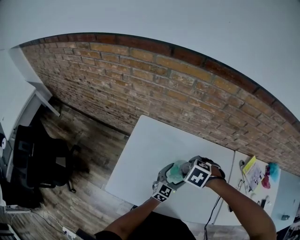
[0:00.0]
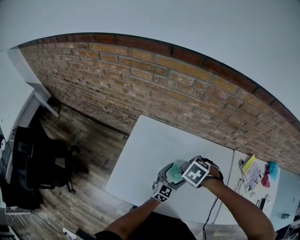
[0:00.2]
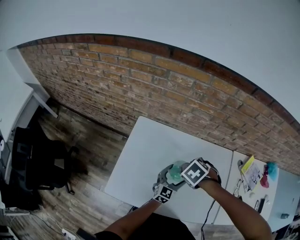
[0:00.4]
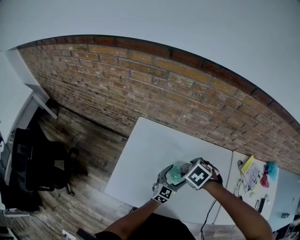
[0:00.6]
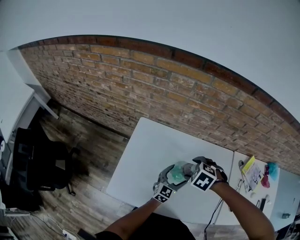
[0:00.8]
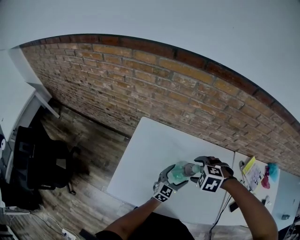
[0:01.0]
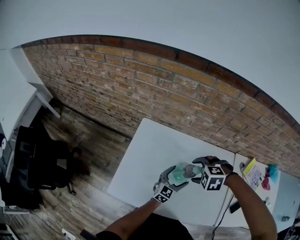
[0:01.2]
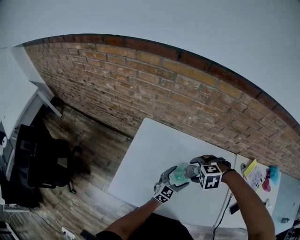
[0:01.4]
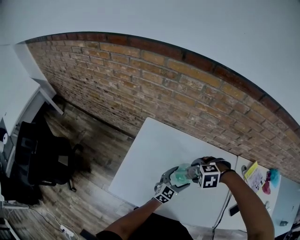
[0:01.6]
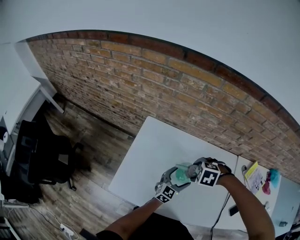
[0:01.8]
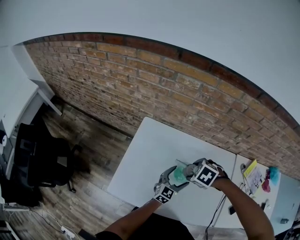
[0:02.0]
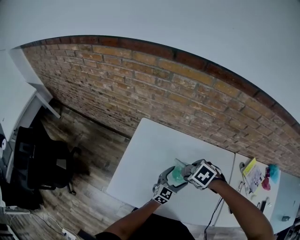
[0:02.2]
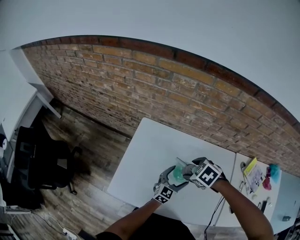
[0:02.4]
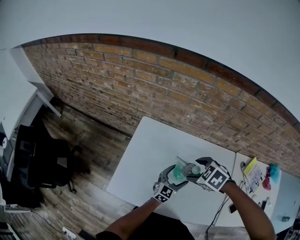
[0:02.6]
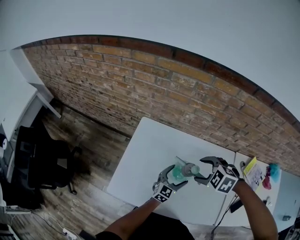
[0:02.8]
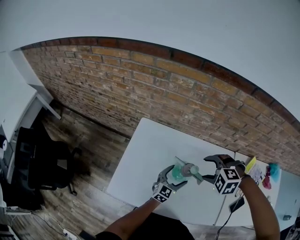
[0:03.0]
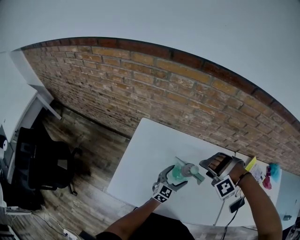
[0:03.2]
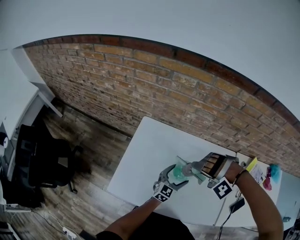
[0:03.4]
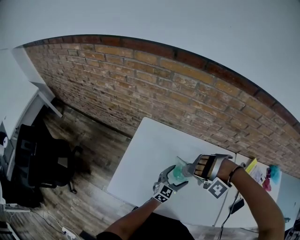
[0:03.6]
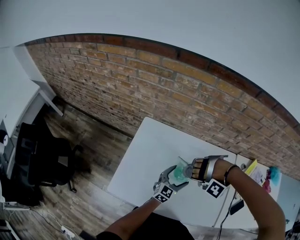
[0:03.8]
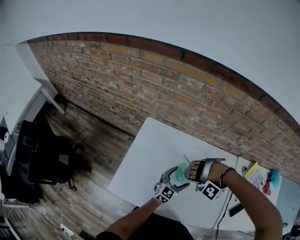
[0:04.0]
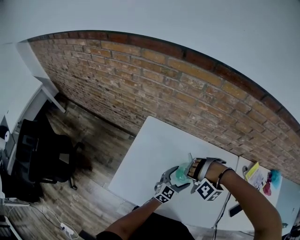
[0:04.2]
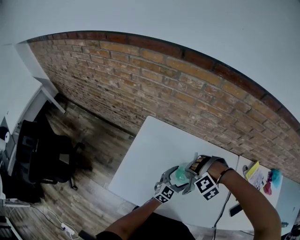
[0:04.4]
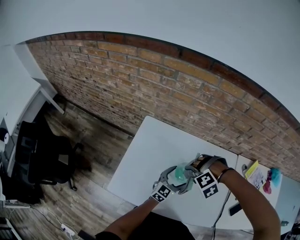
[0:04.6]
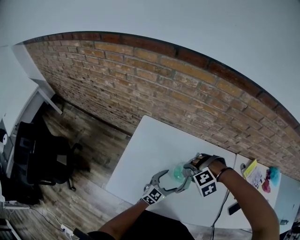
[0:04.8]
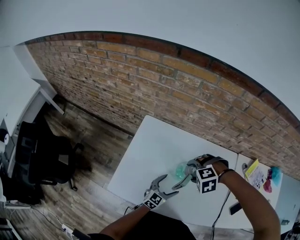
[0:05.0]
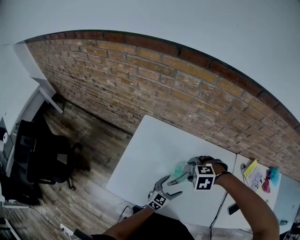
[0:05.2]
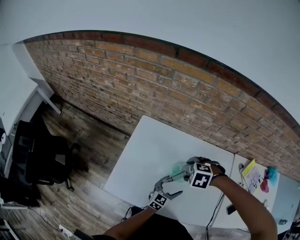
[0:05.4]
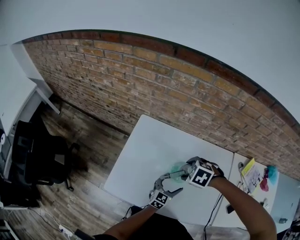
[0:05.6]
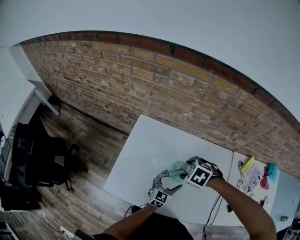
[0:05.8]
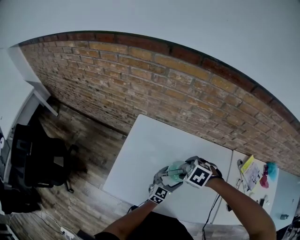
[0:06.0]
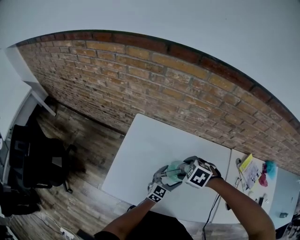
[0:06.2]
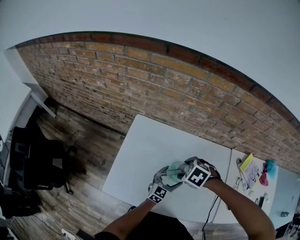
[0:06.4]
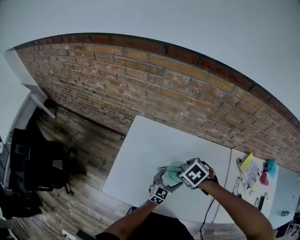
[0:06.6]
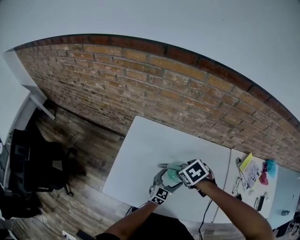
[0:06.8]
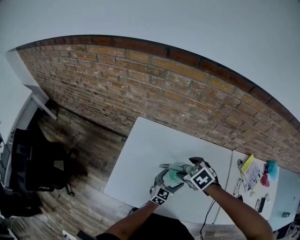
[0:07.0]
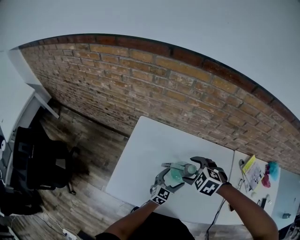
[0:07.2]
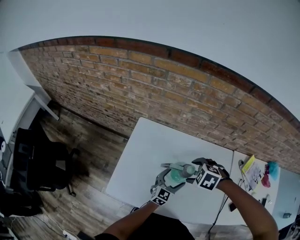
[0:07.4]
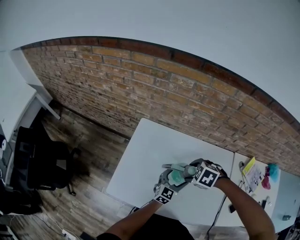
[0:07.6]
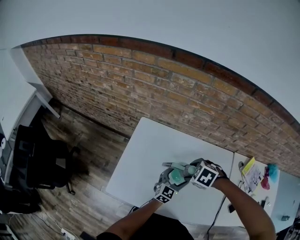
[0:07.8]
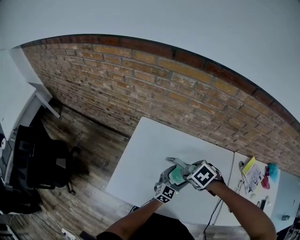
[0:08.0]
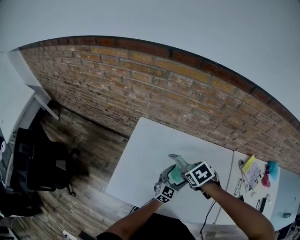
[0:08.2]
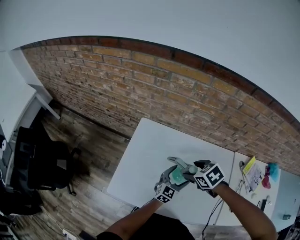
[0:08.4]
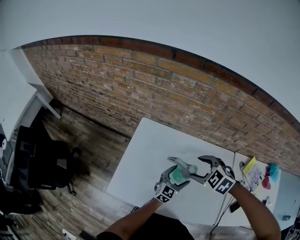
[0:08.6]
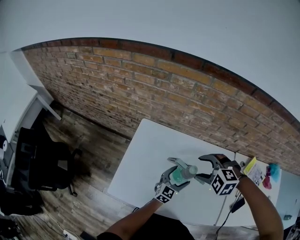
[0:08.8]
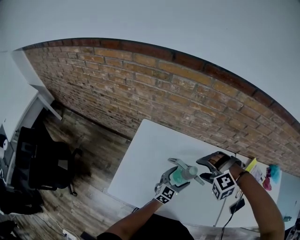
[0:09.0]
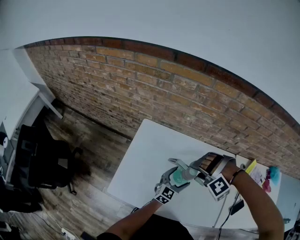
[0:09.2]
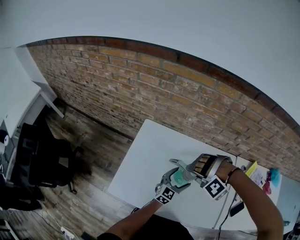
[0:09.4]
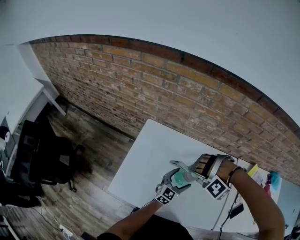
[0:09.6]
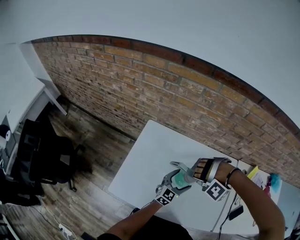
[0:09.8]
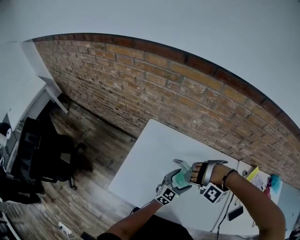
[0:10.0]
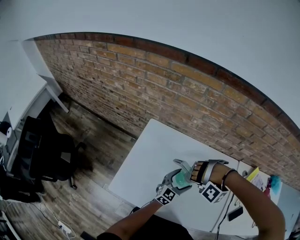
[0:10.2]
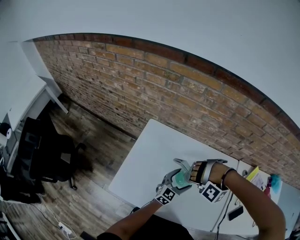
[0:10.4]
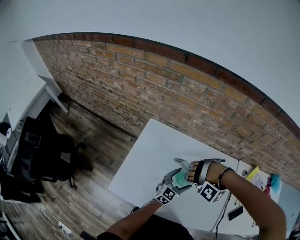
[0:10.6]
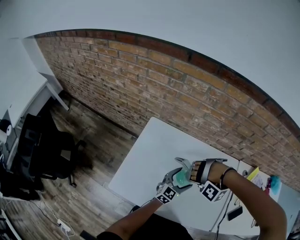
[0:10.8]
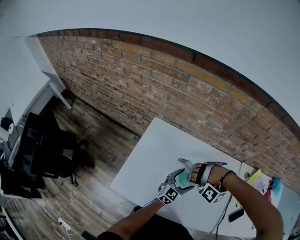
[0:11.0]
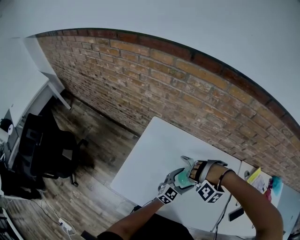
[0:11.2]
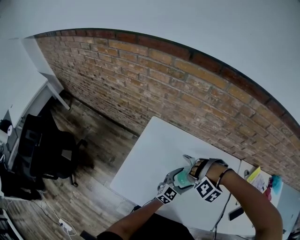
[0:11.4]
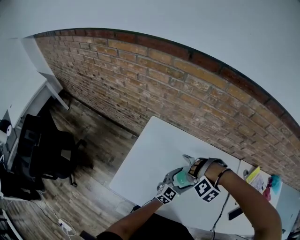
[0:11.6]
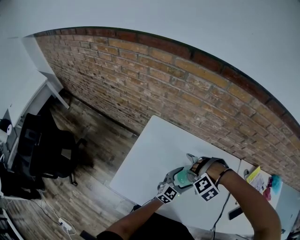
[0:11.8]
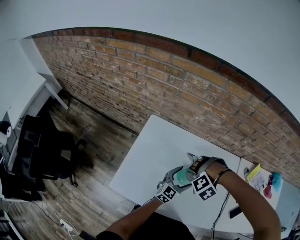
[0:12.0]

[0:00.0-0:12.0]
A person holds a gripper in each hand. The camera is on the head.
0:00.0 to 0:01.6: The right gripper changes its angle by roughly 30 degrees.
0:01.6 to 0:03.0: The right gripper travels upward by approximately 5 cm.
0:03.0 to 0:04.4: The right gripper moves downward, roughly 5 cm, and twists roughly 50 degrees counterclockwise, seen from behind.
0:04.4 to 0:06.0: The right gripper twists about 70 degrees clockwise, seen from behind.
0:07.6 to 0:09.0: The right gripper is displaced upward by roughly 5 cm, and rotates around the line of its fingers by roughly 50 degrees, counterclockwise from behind.
0:09.0 to 0:10.4: The right gripper goes roughly 5 cm downward, and rotates around the line of its fingers by approximately 50 degrees, counterclockwise from behind.
0:10.4 to 0:12.0: The right gripper turns by about 40 degrees.

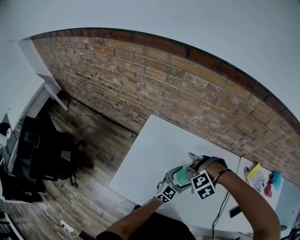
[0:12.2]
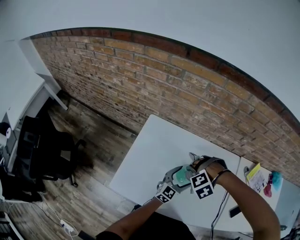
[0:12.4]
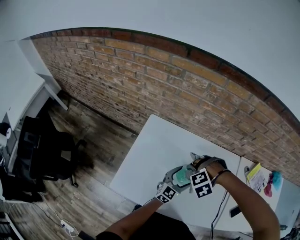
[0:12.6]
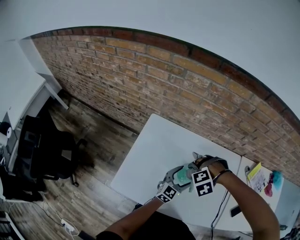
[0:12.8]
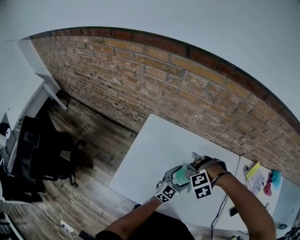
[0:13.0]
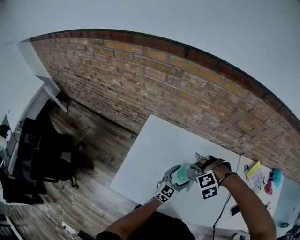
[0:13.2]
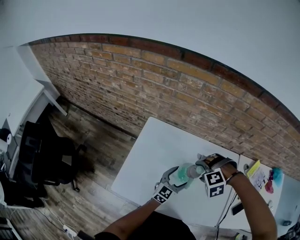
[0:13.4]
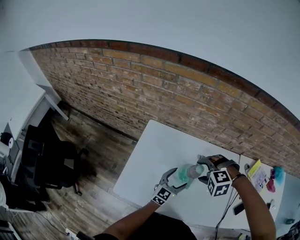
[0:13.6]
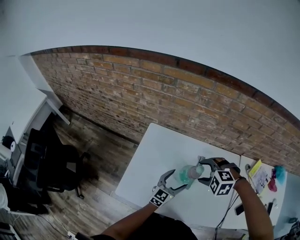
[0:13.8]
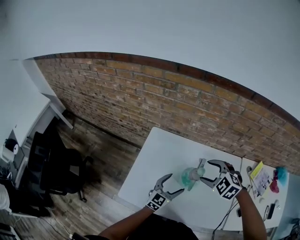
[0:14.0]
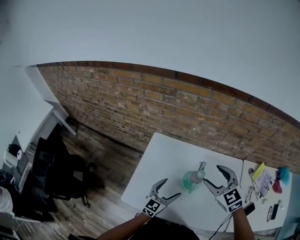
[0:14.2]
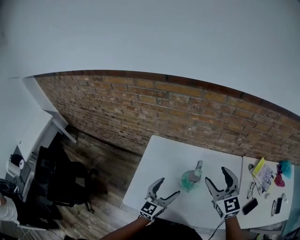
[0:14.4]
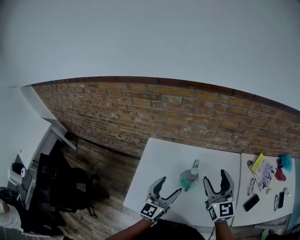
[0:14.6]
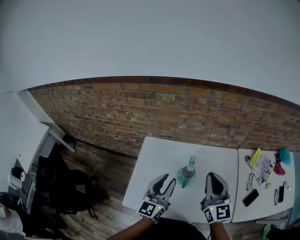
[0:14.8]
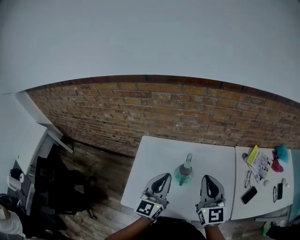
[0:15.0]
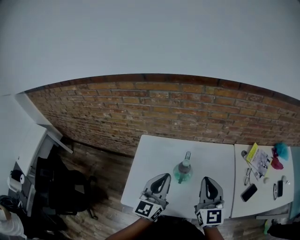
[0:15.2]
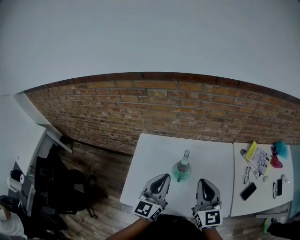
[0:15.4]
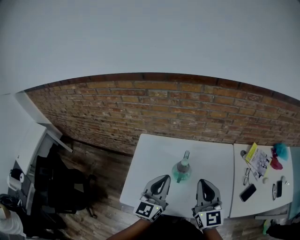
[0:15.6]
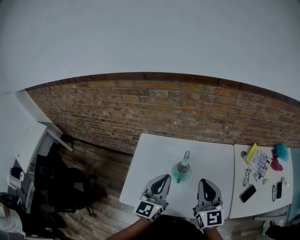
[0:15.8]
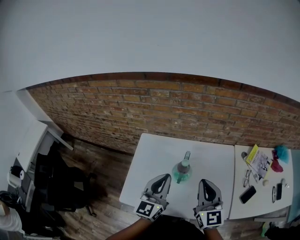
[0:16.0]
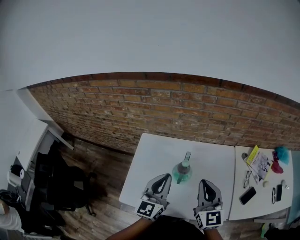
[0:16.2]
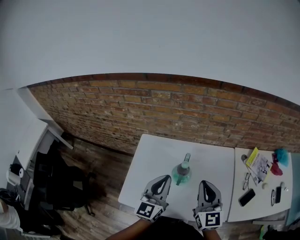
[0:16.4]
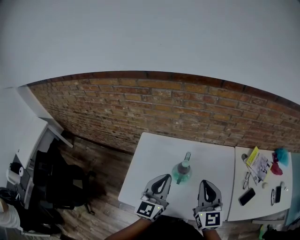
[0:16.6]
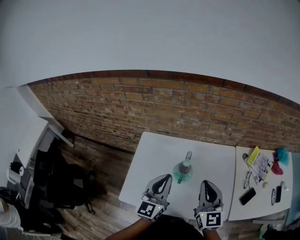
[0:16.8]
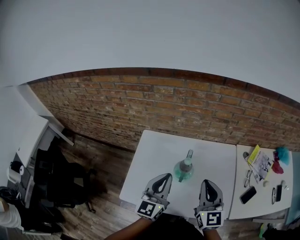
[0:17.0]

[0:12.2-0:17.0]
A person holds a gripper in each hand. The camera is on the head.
0:12.2 to 0:13.8: The left gripper shifts by about 5 cm, while the right gripper heads upward, covering some 10 cm, and swivels some 40 degrees.
0:13.8 to 0:15.4: The right gripper shifts some 20 cm upward, backward and to the right, angles its fingers upward, by roughly 60 degrees, and closes; the left gripper travels upward by about 20 cm, and closes its fingers.
0:15.4 to 0:17.0: The grippers make only small movements.

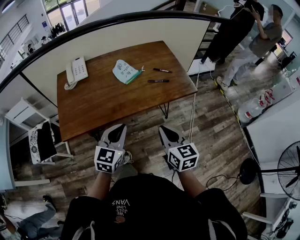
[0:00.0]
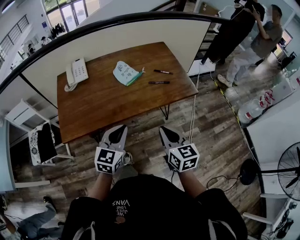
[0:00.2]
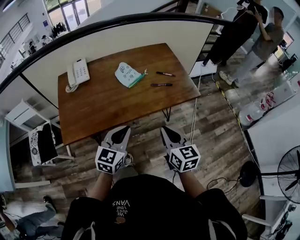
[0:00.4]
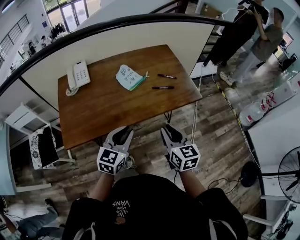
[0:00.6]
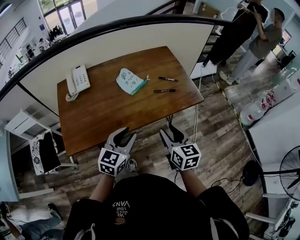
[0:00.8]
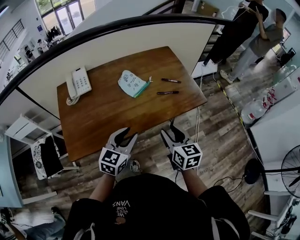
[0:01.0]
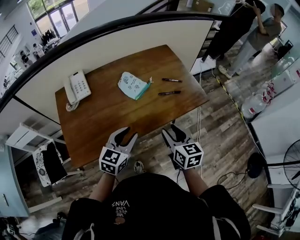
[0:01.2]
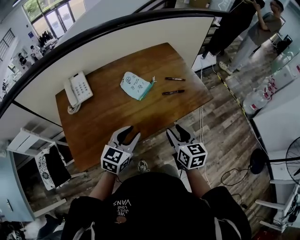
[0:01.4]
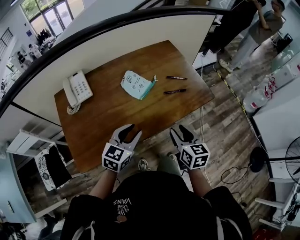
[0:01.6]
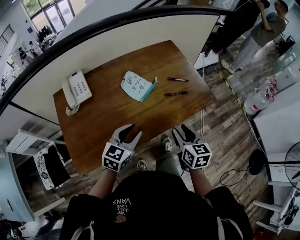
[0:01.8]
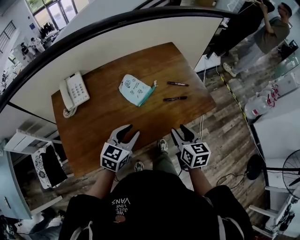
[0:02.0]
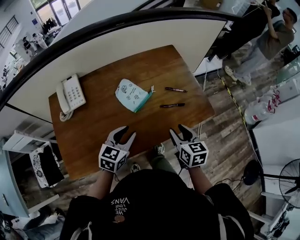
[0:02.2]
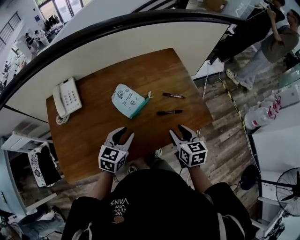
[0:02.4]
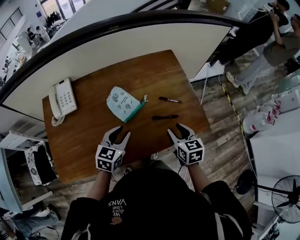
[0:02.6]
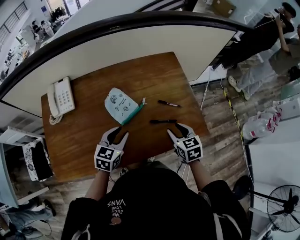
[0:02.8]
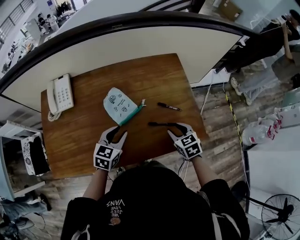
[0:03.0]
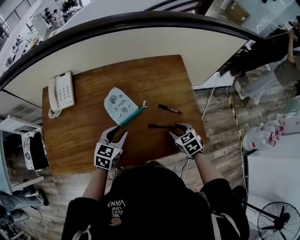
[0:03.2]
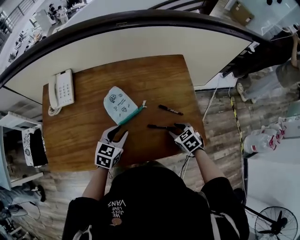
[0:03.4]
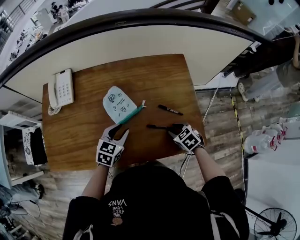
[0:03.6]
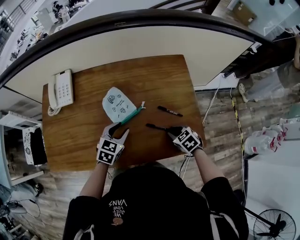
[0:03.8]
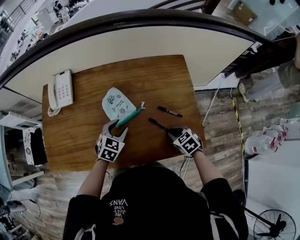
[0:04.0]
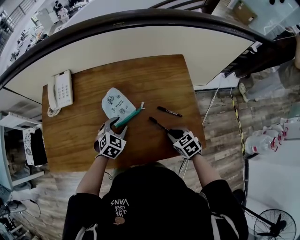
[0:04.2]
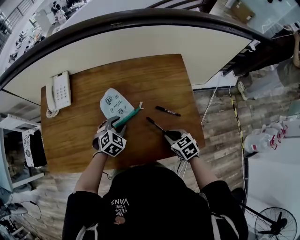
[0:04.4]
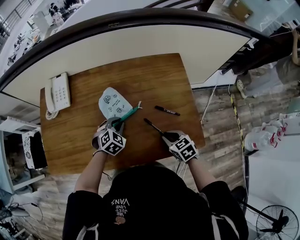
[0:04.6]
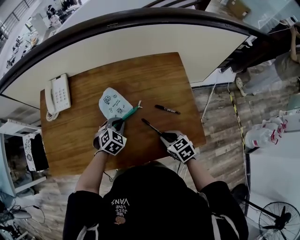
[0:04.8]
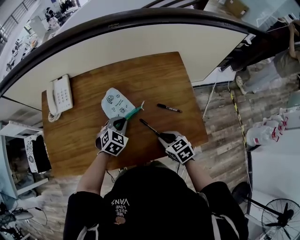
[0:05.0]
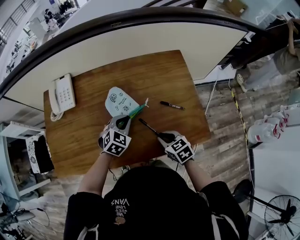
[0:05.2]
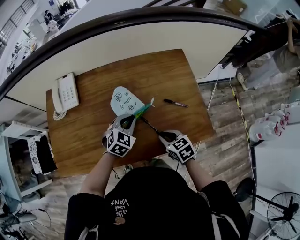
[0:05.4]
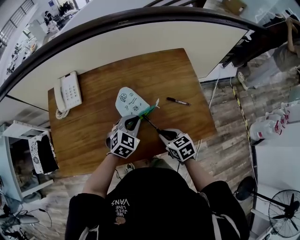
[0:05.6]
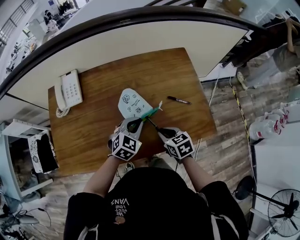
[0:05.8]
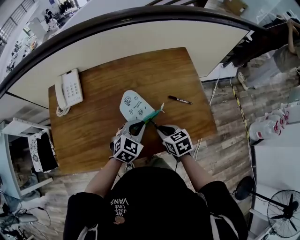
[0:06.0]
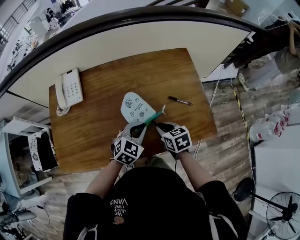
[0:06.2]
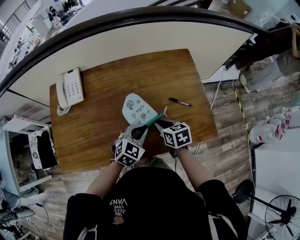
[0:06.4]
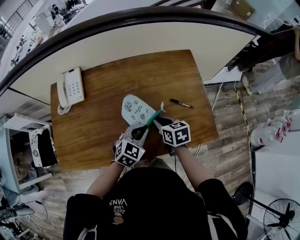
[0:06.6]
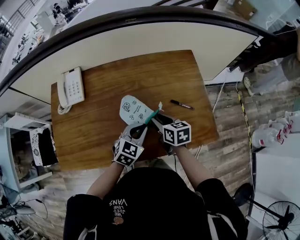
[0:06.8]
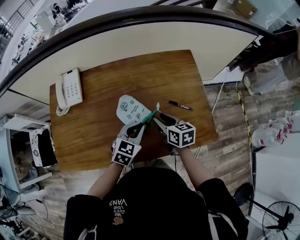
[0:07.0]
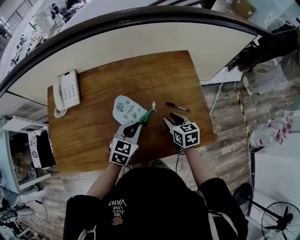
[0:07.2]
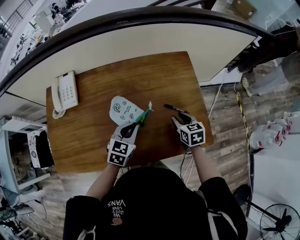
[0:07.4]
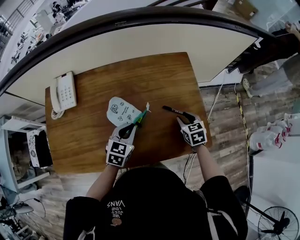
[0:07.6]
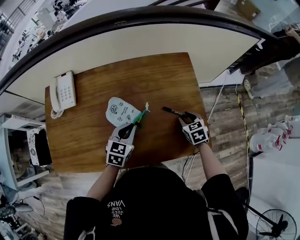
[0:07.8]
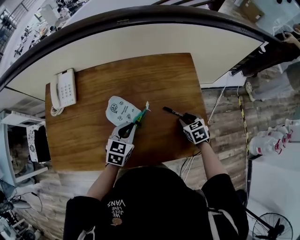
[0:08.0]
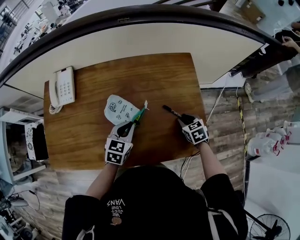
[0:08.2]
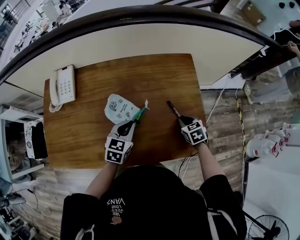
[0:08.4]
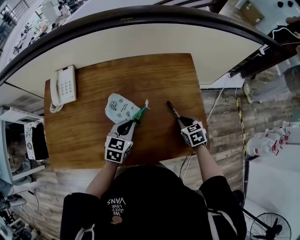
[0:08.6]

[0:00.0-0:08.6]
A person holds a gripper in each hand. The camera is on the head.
0:00.0 to 0:01.4: Both grippers move forward and to the left, roughly 15 cm. The left gripper opens up; the right gripper opens.
0:01.4 to 0:02.8: The right gripper moves forward, roughly 20 cm, and rotates approximately 30 degrees. Meanwhile the left gripper moves forward and downward, about 20 cm.
0:02.8 to 0:04.4: The left gripper shifts approximately 10 cm downward and forward, and rotates approximately 40 degrees, while the right gripper moves downward, some 5 cm, and turns by approximately 30 degrees.
0:04.4 to 0:05.8: The left gripper is displaced upward by roughly 5 cm, and closes; the right gripper moves to the left, some 10 cm.
0:05.8 to 0:07.2: The right gripper moves forward and to the right, some 10 cm.
0:07.2 to 0:08.6: The right gripper is displaced to the right and downward by some 10 cm, and turns by roughly 20 degrees.
